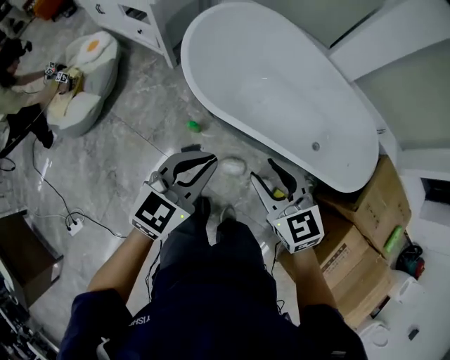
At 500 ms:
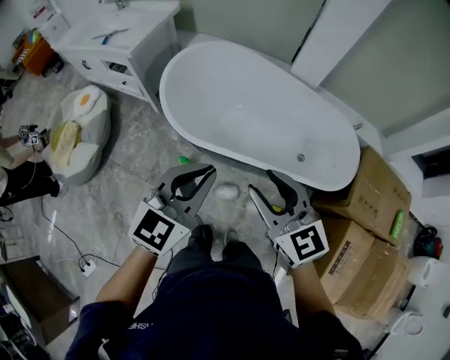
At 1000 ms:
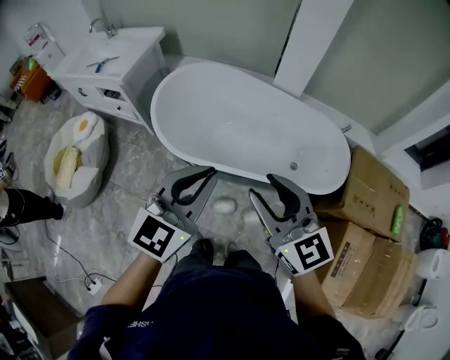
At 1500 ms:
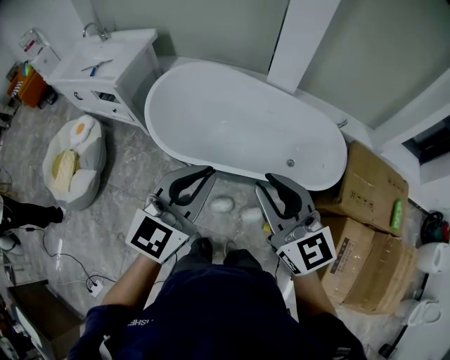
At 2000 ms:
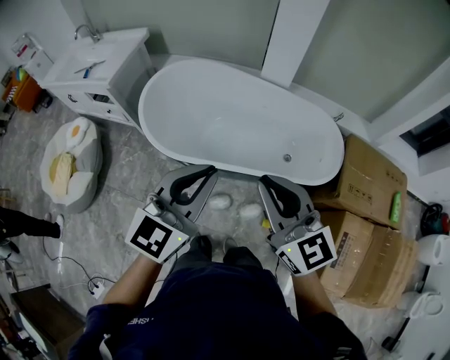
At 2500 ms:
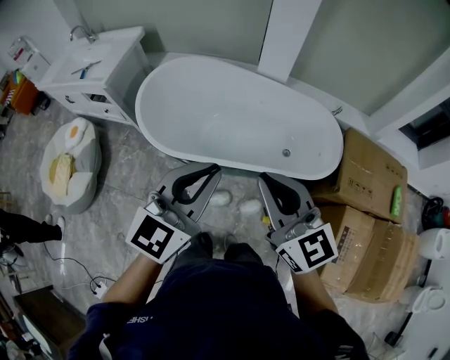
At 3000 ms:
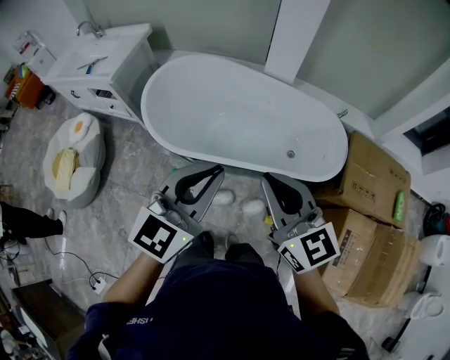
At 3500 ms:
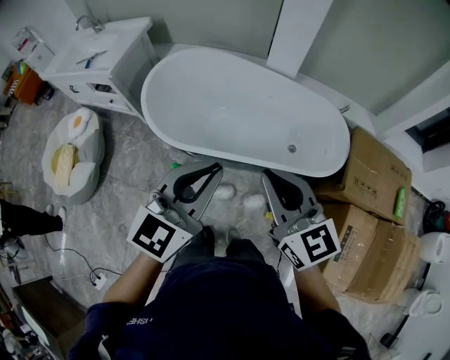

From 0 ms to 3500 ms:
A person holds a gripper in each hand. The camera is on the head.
From 0 ms to 2000 ms: The grippers both shift upward and to the right by some 25 cm. The right gripper changes its angle by approximately 30 degrees, and closes up.
From 2000 ms to 3500 ms: The grippers make only small movements.

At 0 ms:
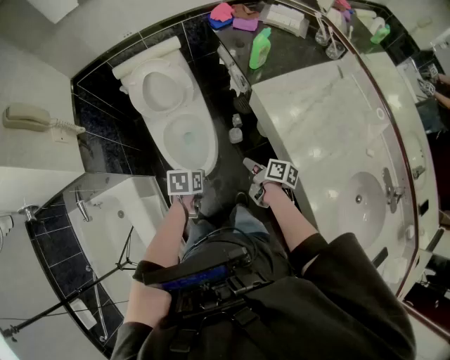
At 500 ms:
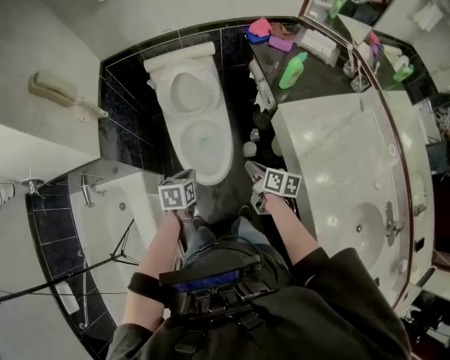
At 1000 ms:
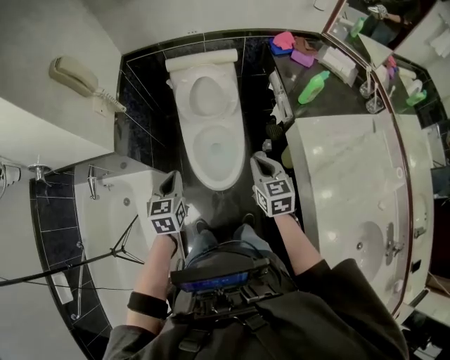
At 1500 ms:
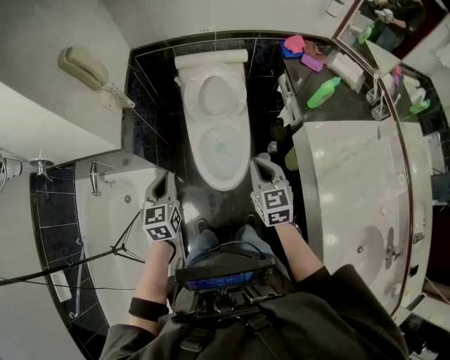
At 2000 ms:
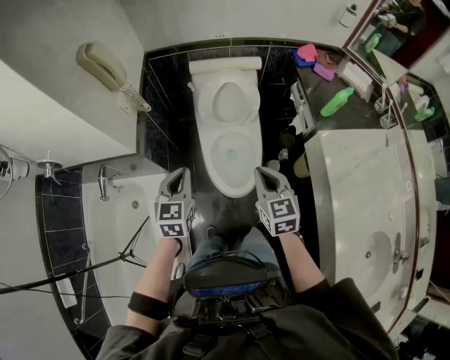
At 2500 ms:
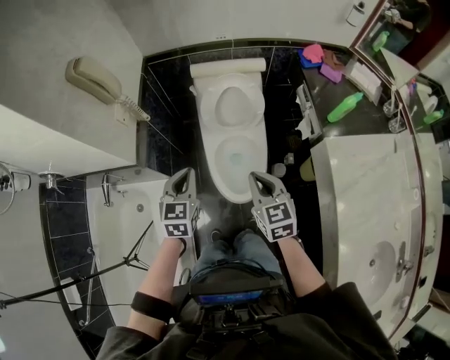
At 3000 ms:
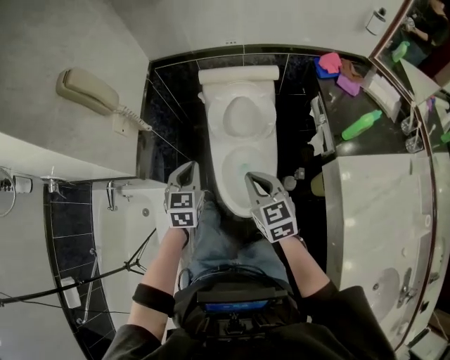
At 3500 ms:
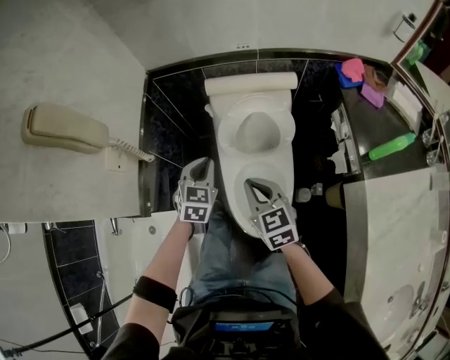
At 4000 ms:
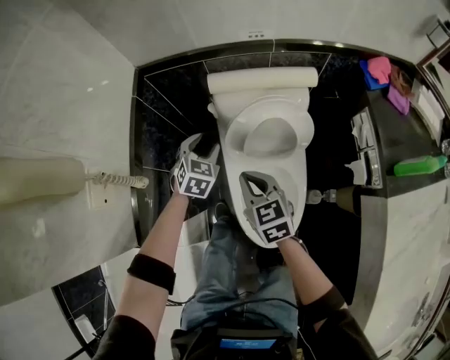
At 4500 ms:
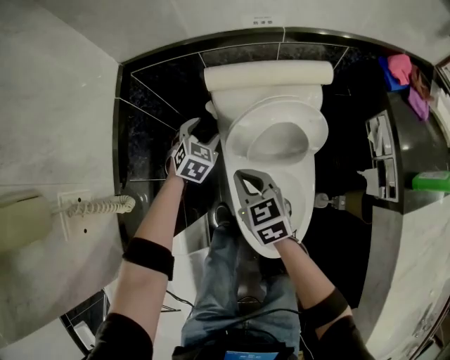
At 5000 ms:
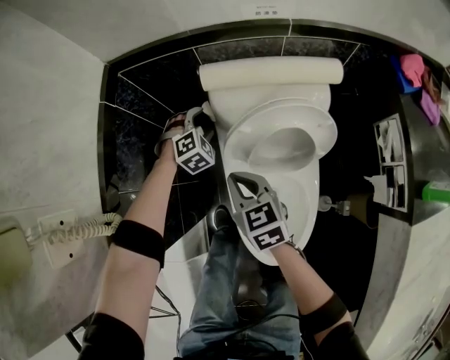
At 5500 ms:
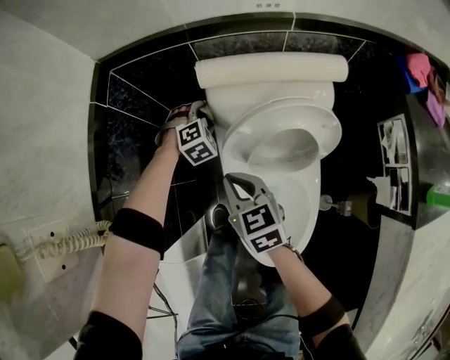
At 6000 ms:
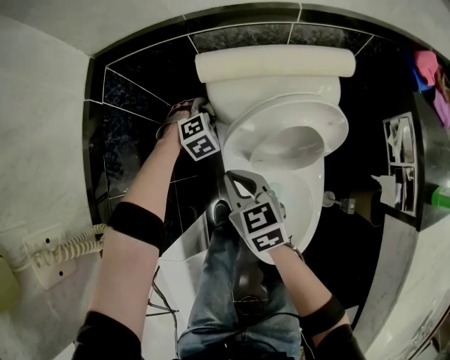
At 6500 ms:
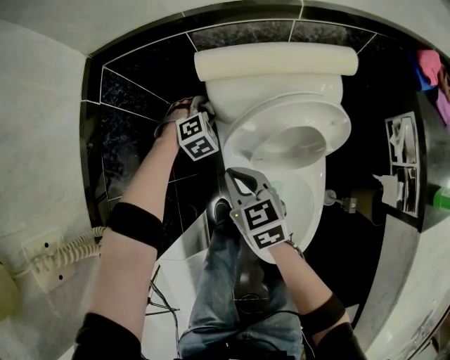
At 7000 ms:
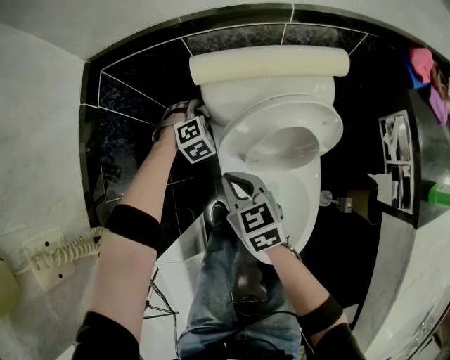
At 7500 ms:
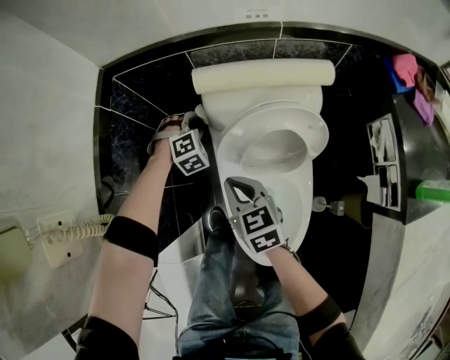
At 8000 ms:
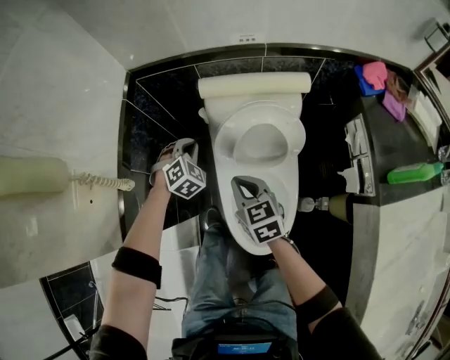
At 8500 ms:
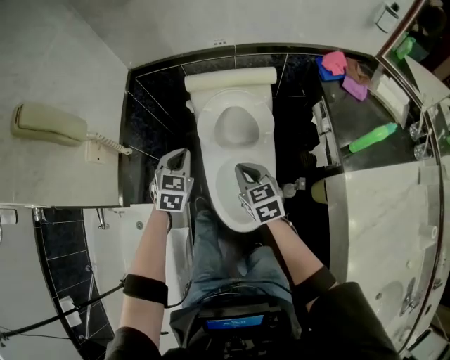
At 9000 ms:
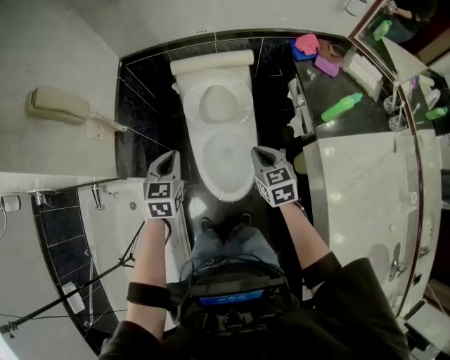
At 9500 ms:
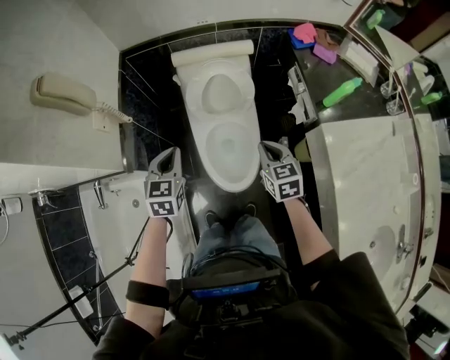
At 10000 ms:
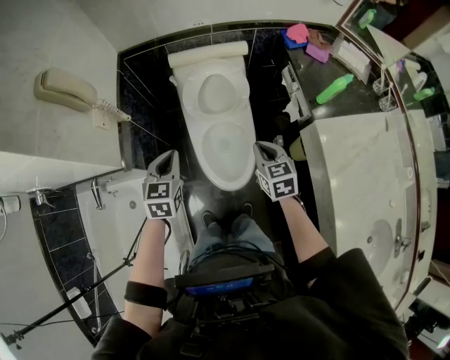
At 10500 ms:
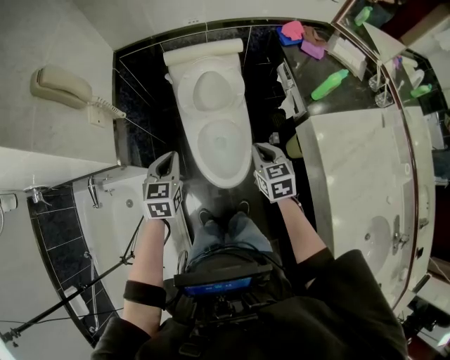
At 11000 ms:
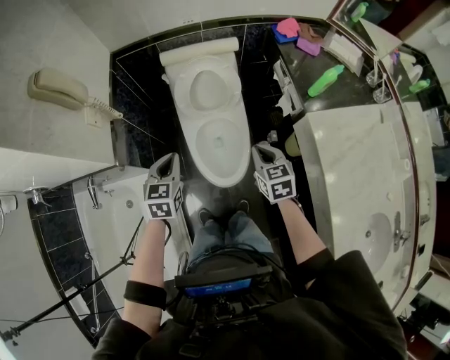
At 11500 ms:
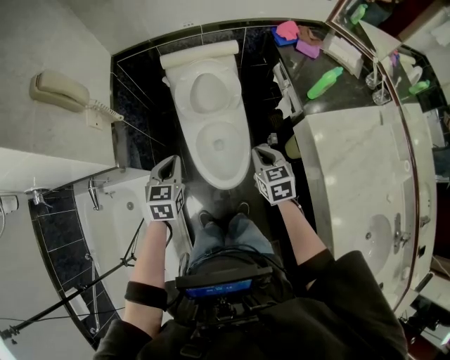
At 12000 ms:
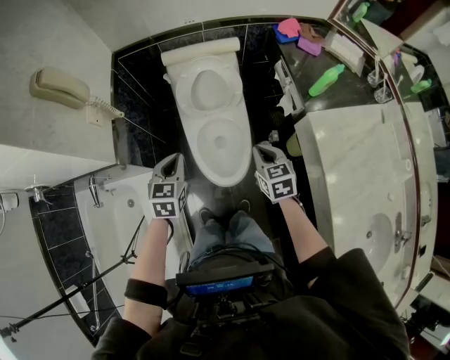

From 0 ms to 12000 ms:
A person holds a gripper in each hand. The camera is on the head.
From 0 ms to 2000 ms: The two grippers go roughly 30 cm to the left and upward. The right gripper rotates around the line of its fingers by approximately 70 degrees, counterclockwise from behind. Meanwhile the left gripper tilts its fingers roughly 30 degrees upward.
From 2000 ms to 4000 ms: The two grippers go approximately 40 cm forward and downward. The left gripper turns by roughly 30 degrees, and opens up.
From 4000 ms to 6000 ms: The left gripper travels downward and forward by about 25 cm, and turns by approximately 50 degrees. Meanwhile the right gripper travels downward and forward by about 15 cm.
From 6000 ms to 8000 ms: The left gripper shifts about 25 cm upward and backward, turns by roughly 20 degrees, and closes; the right gripper heads upward and backward, covering some 15 cm.
From 8000 ms to 10000 ms: The left gripper shifts some 40 cm backward and upward, and rotates around the line of its fingers by roughly 40 degrees, counterclockwise from behind; the right gripper is displaced backward, to the right and upward by approximately 30 cm.
From 10000 ms to 12000 ms: The left gripper changes place by approximately 5 cm; the right gripper shifts by roughly 5 cm.

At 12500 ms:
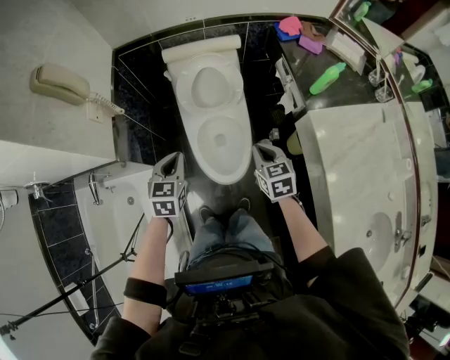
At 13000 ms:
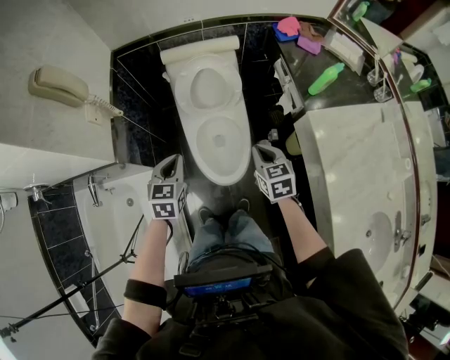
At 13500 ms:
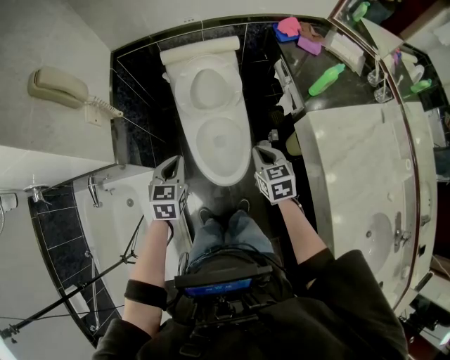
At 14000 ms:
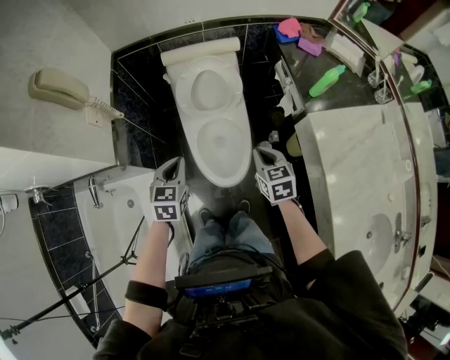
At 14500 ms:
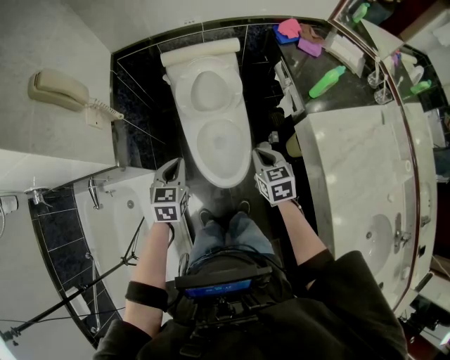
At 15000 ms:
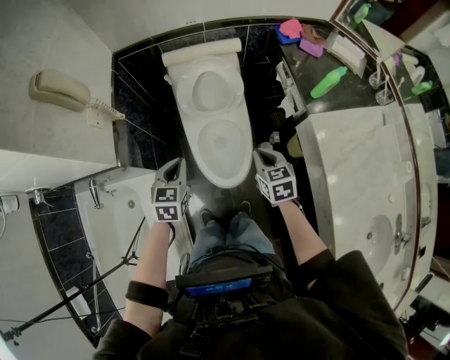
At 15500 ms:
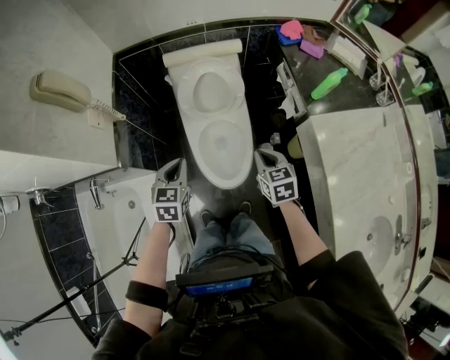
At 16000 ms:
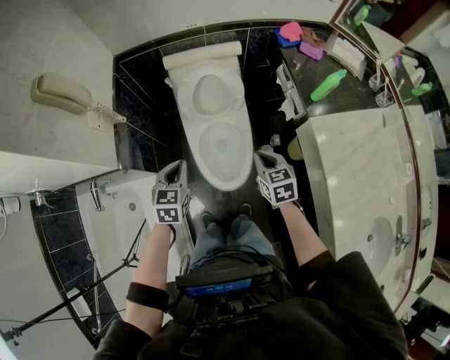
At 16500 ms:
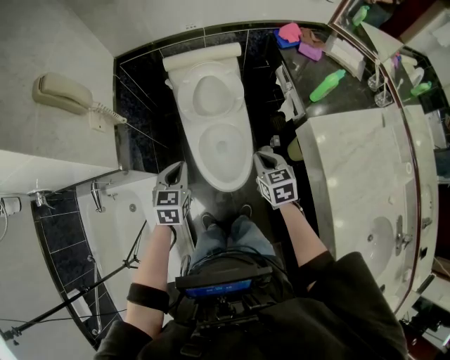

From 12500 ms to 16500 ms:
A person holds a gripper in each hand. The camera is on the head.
From 12500 ms to 16500 ms: Both grippers stay about where they are.

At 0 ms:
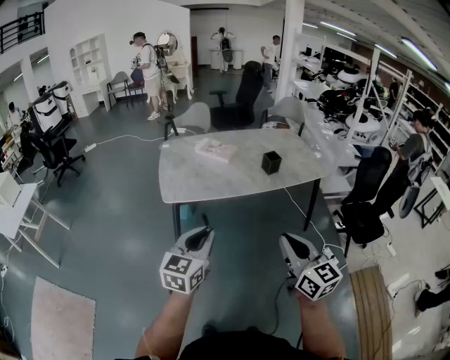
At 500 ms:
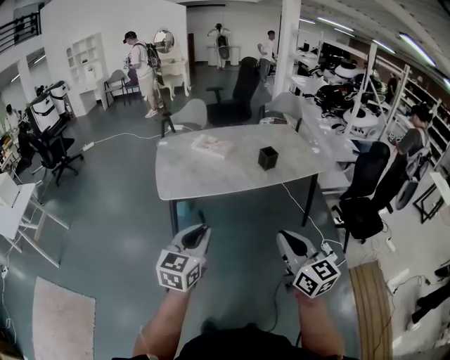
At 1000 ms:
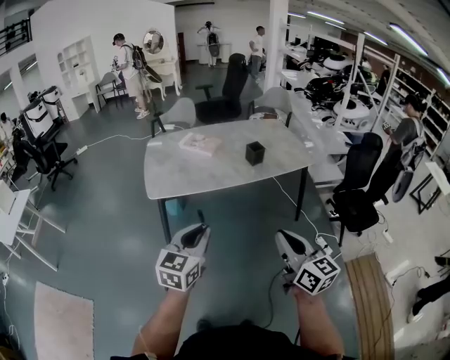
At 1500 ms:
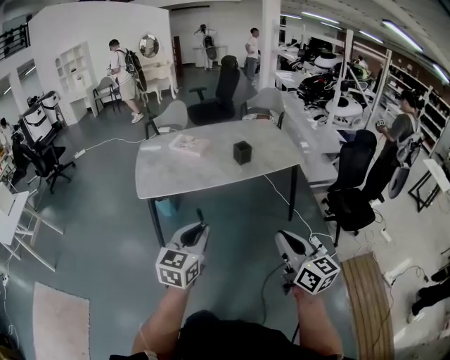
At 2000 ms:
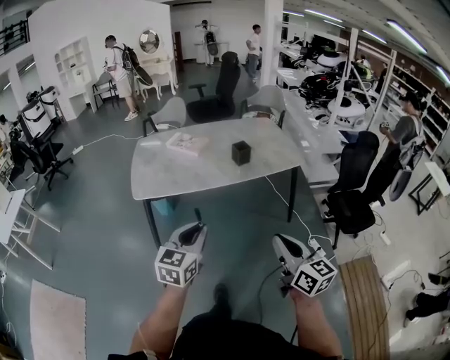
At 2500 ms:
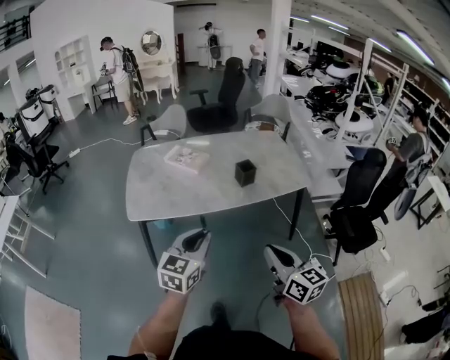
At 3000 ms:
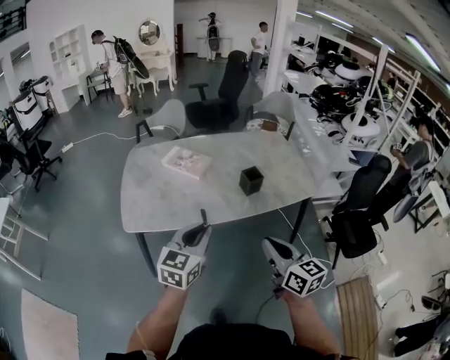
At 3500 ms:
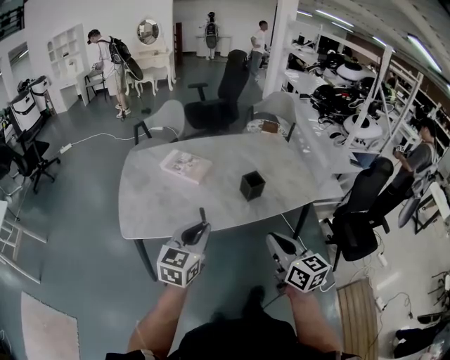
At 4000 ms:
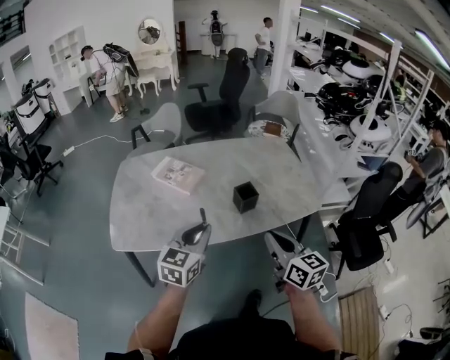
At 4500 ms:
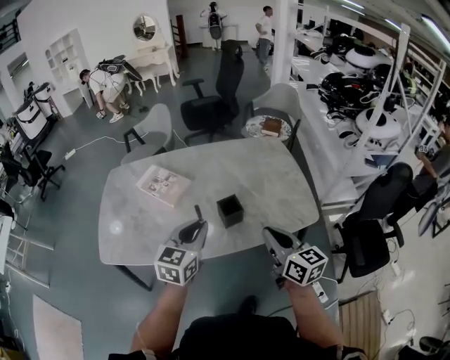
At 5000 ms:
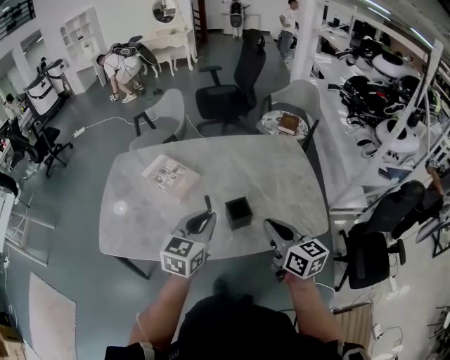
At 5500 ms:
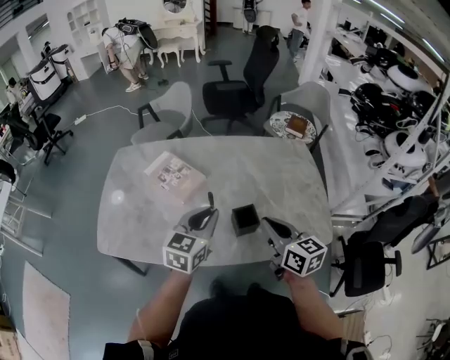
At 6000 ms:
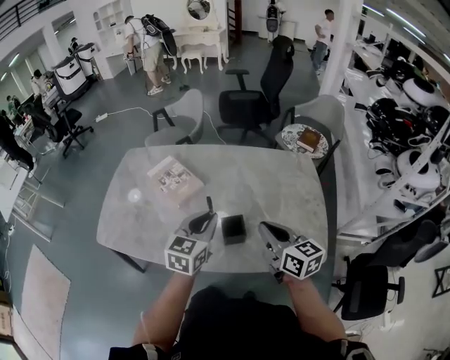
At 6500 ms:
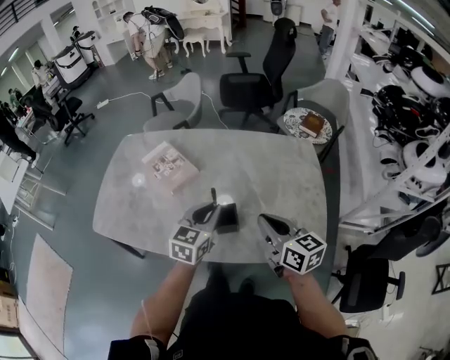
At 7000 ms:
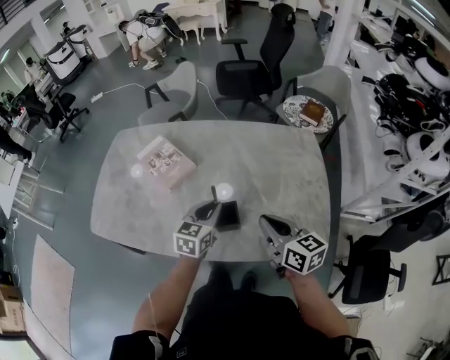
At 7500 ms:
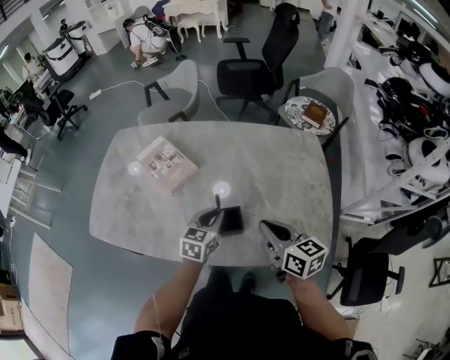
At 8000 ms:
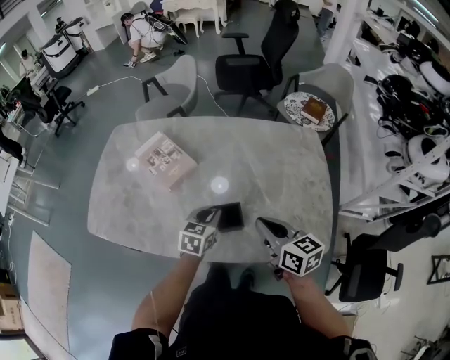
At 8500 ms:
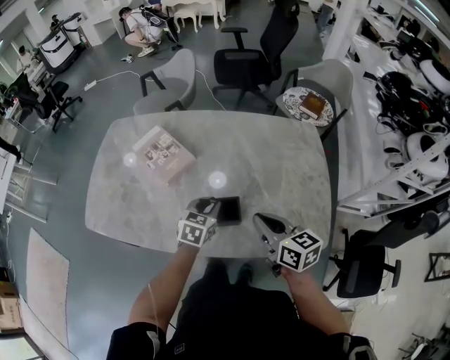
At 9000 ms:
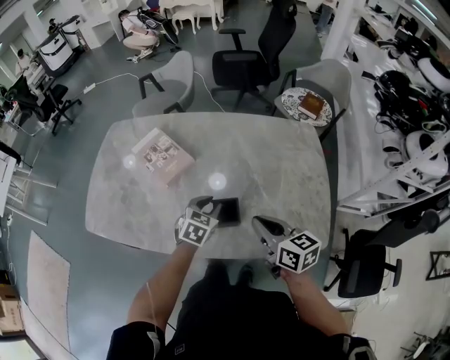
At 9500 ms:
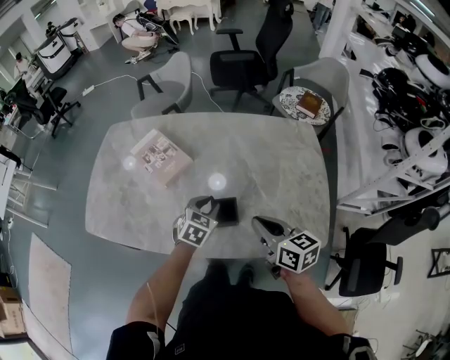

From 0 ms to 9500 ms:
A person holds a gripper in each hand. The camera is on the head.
From 0 ms to 2000 ms: The two grippers go about 15 cm to the right.
From 2000 ms to 4000 ms: Both grippers are carried forward, about 40 cm.
From 4000 ms to 5500 ms: The two grippers go roughly 25 cm forward.
From 5500 ms to 7500 ms: The left gripper travels downward and to the right by roughly 20 cm. Meanwhile the right gripper travels to the right and downward by about 10 cm.
From 7500 ms to 9500 ms: The left gripper swivels approximately 20 degrees.
